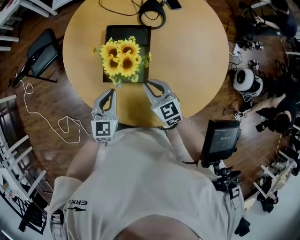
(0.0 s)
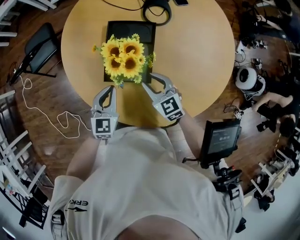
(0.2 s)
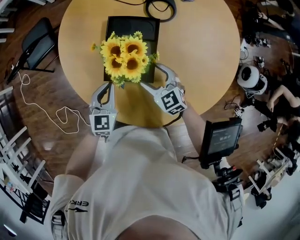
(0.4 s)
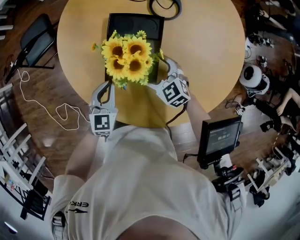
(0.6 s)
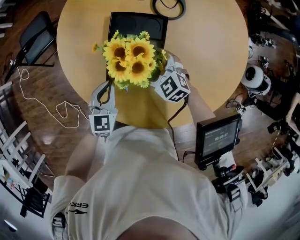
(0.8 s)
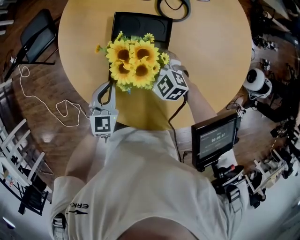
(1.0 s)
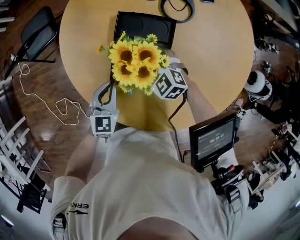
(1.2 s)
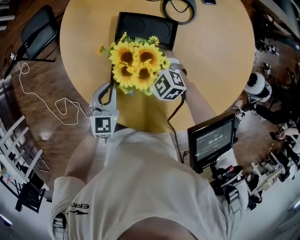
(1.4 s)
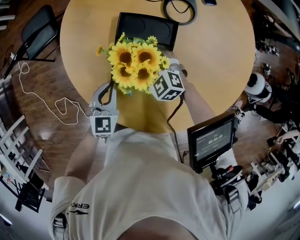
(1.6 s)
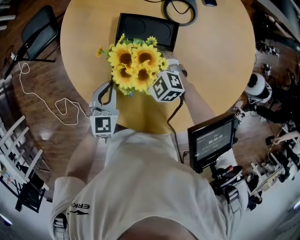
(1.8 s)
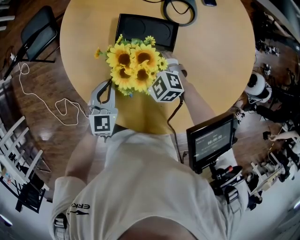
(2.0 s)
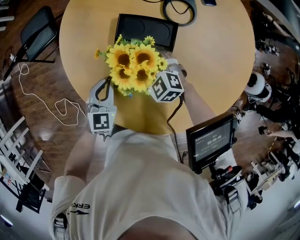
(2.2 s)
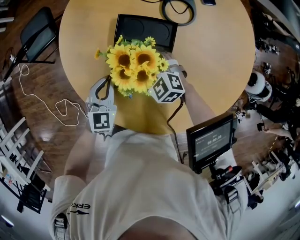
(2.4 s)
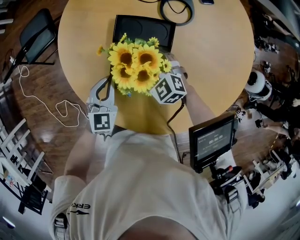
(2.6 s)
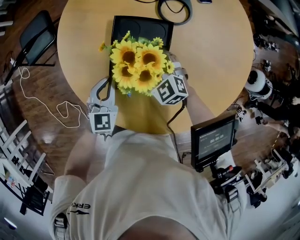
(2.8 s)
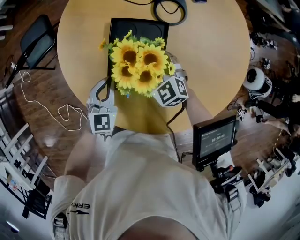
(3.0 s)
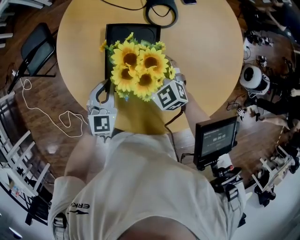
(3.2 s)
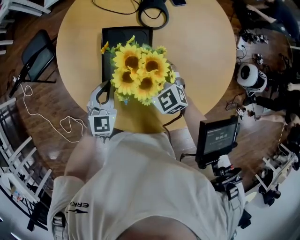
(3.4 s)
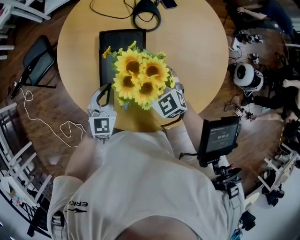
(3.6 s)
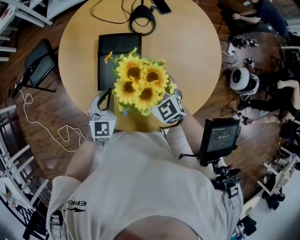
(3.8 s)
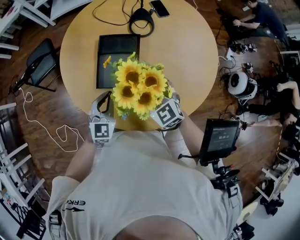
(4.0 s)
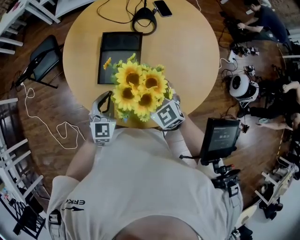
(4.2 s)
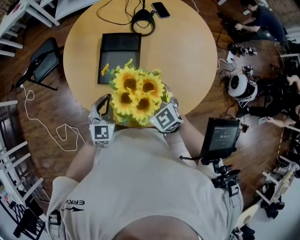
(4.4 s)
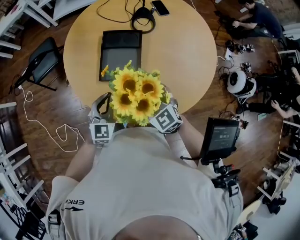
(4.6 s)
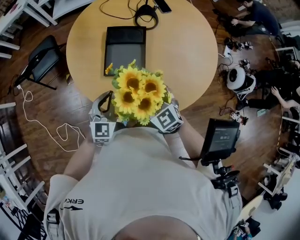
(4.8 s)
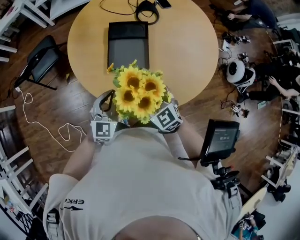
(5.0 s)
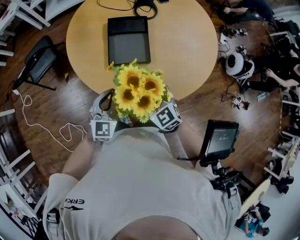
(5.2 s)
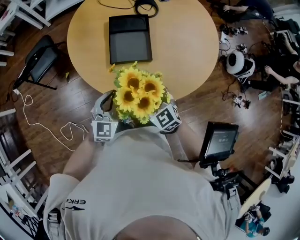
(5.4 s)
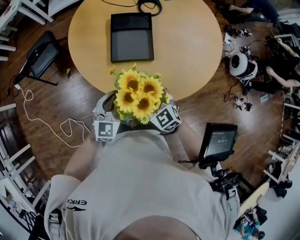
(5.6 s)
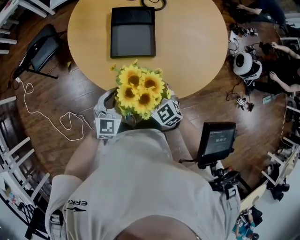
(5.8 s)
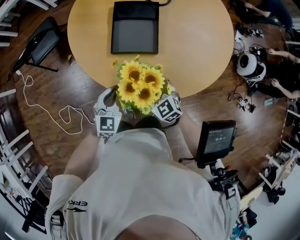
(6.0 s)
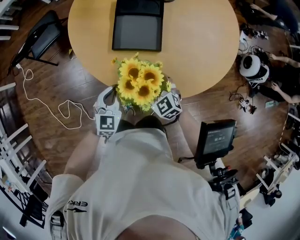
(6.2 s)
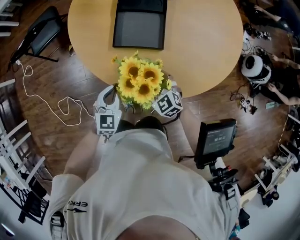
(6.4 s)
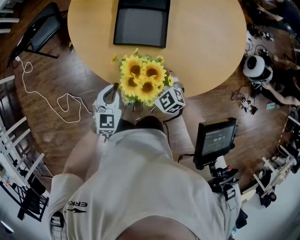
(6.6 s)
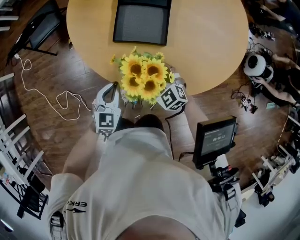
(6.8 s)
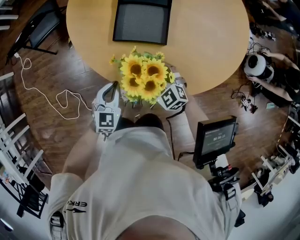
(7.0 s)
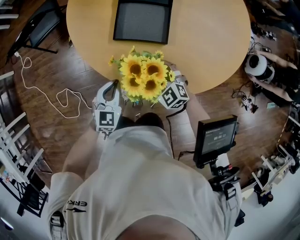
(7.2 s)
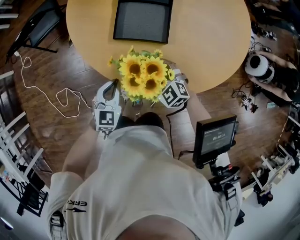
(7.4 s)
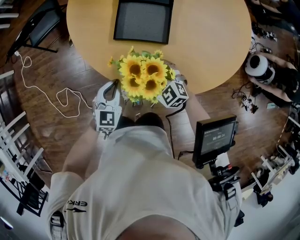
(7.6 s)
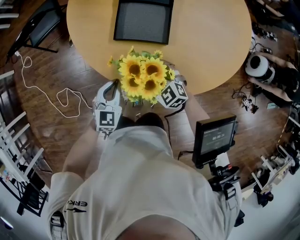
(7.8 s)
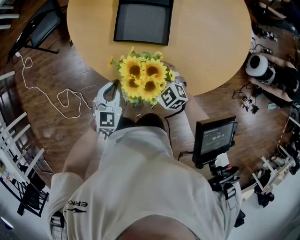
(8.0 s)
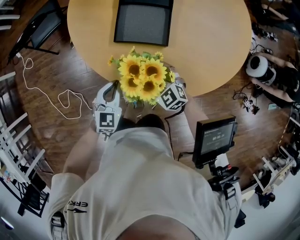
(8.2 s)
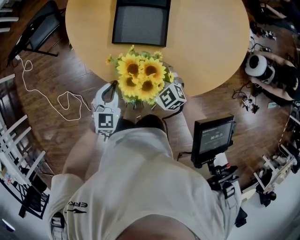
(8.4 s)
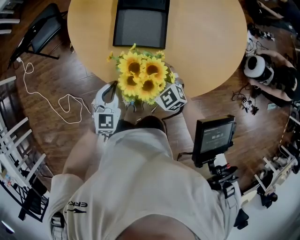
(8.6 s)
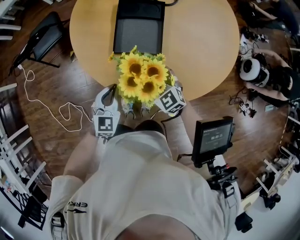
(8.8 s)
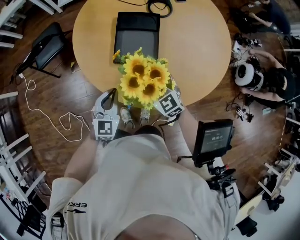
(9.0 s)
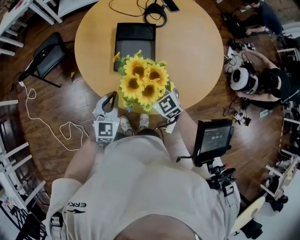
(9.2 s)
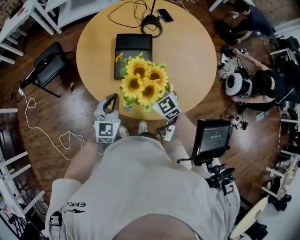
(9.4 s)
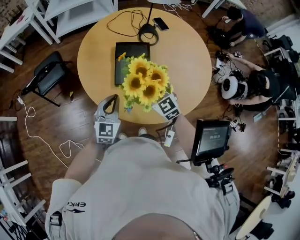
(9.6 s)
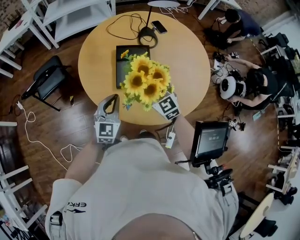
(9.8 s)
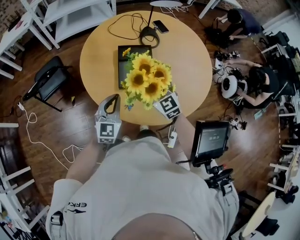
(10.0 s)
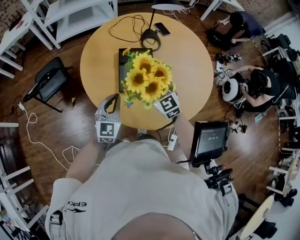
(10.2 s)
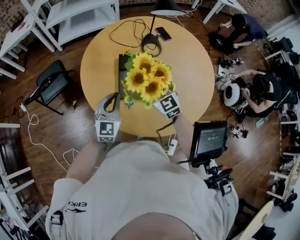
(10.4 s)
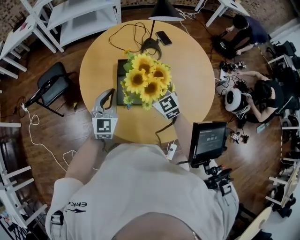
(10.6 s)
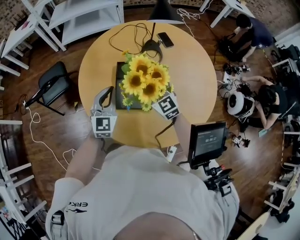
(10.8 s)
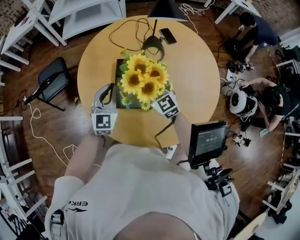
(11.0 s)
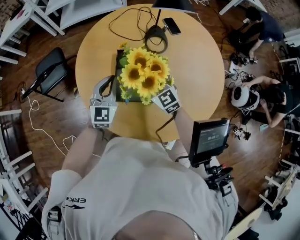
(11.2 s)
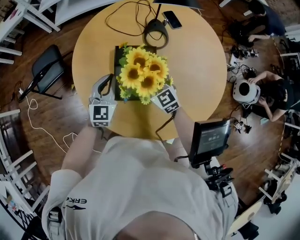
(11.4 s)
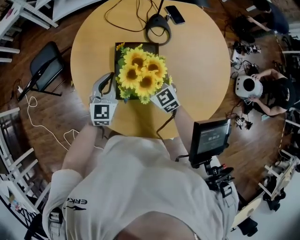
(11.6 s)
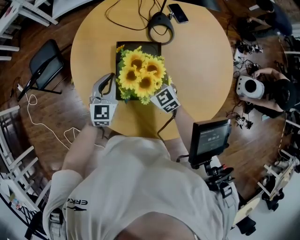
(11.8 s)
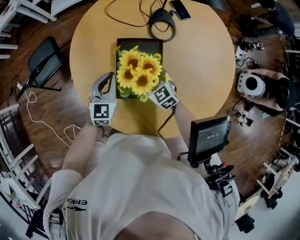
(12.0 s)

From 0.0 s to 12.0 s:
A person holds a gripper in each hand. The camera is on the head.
From 0.0 s to 1.6 s: The right gripper is displaced forward and downward by about 15 cm, changes its angle by roughly 40 degrees, and opens up; the left gripper shifts some 10 cm forward and downward.
From 1.6 s to 3.0 s: The grippers make only small movements.
From 3.0 s to 4.4 s: The two grippers go approximately 20 cm backward and upward.
From 4.4 s to 6.0 s: The right gripper moves downward, to the left and backward, approximately 15 cm; the left gripper shifts some 10 cm downward and backward.
From 6.0 s to 7.6 s: The two grippers go about 5 cm downward.
From 7.6 s to 9.0 s: Both grippers travel together upward, approximately 10 cm. The right gripper changes its angle by some 20 degrees.
From 9.0 s to 10.4 s: Both grippers travel together forward and upward, roughly 15 cm.
From 10.4 s to 12.0 s: The left gripper shifts some 15 cm forward and downward, while the right gripper goes about 20 cm downward, and changes its angle by some 20 degrees.

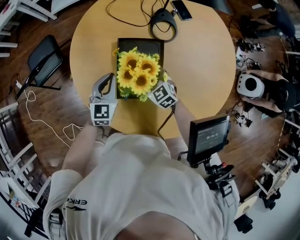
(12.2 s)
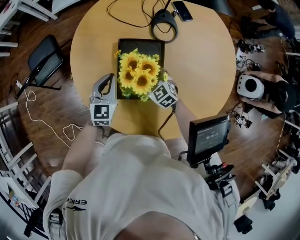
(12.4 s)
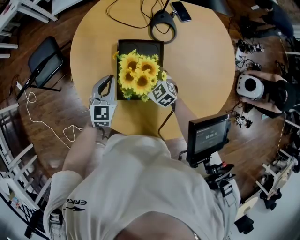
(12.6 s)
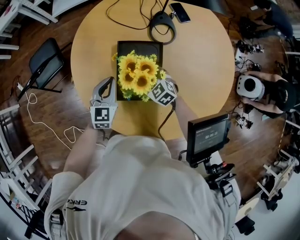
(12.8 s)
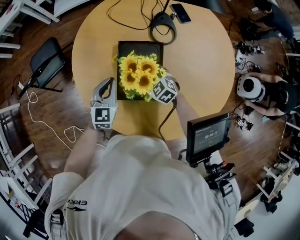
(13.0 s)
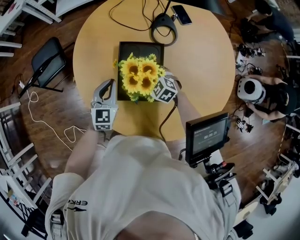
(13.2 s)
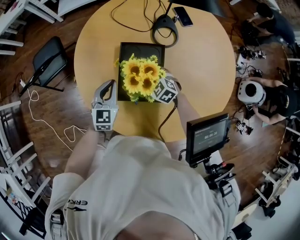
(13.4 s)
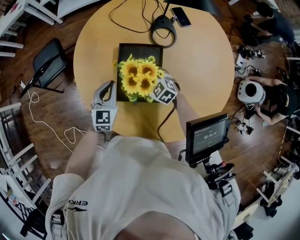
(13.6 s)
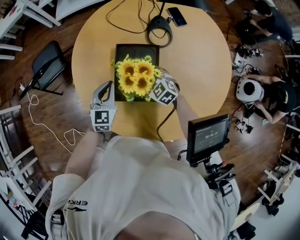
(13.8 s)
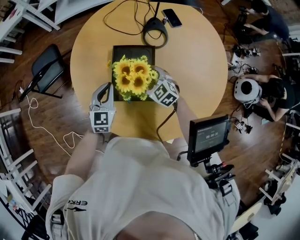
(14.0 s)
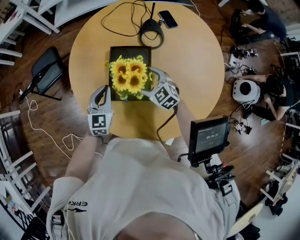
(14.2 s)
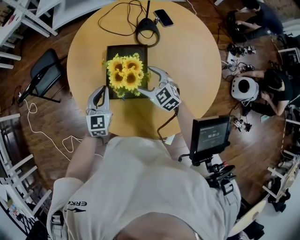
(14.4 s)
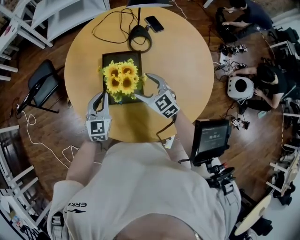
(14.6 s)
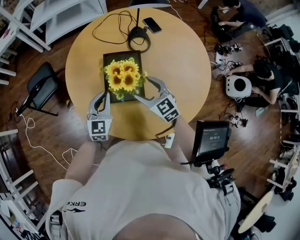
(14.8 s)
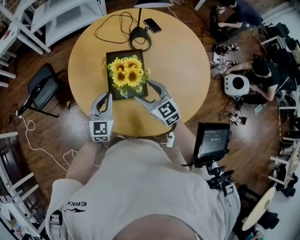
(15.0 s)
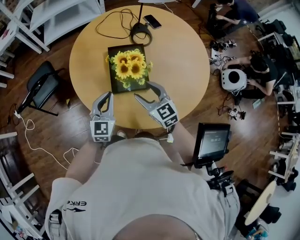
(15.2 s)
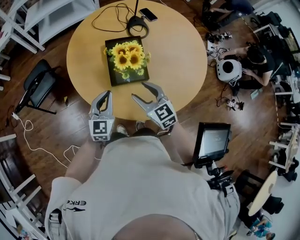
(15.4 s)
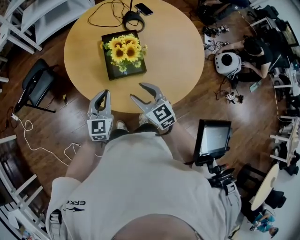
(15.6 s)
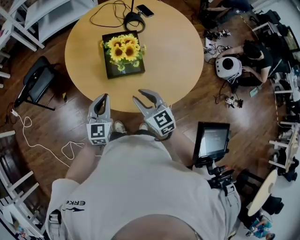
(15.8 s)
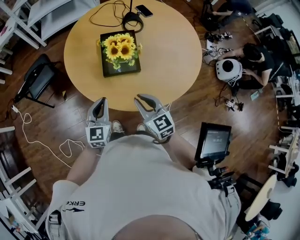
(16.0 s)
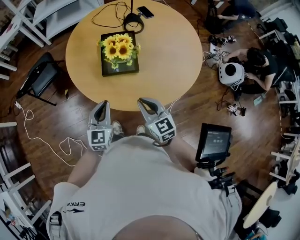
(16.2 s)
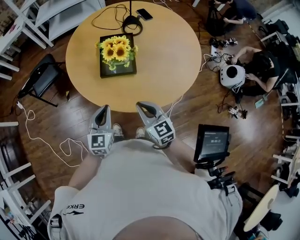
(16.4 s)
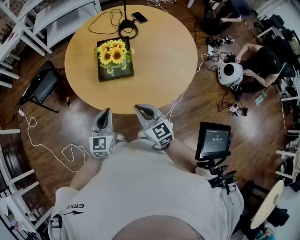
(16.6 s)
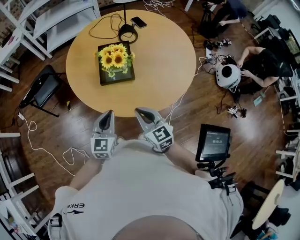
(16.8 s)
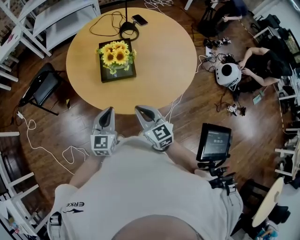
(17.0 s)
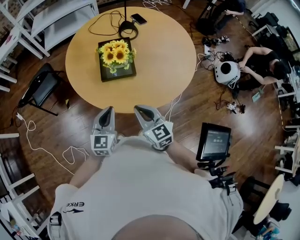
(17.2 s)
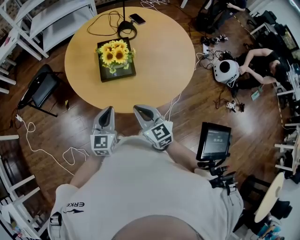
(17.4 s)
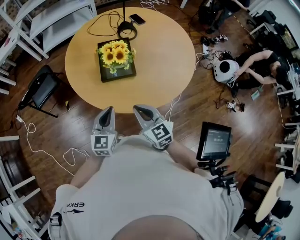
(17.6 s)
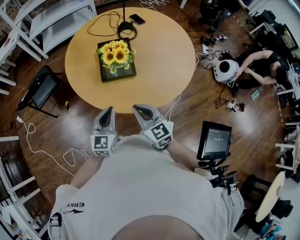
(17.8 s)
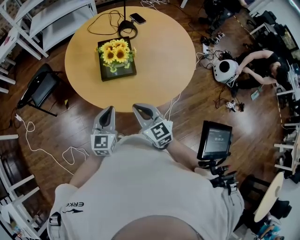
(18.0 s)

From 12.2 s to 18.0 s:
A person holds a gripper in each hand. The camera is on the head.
From 12.2 s to 13.6 s: The grippers move only a little.
From 13.6 s to 15.0 s: The right gripper moves upward and backward, roughly 20 cm, and turns by roughly 30 degrees, while the left gripper heads backward and upward, covering roughly 10 cm.
From 15.0 s to 16.6 s: The grippers both shift backward by roughly 20 cm. The right gripper closes its fingers.
From 16.6 s to 18.0 s: The grippers make only small movements.

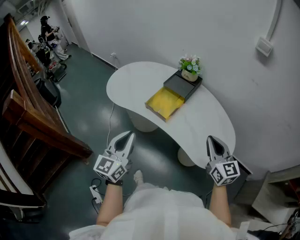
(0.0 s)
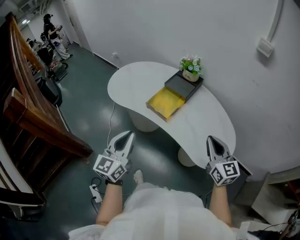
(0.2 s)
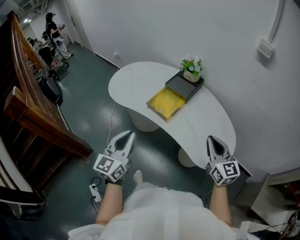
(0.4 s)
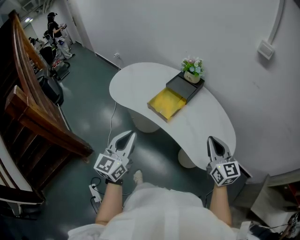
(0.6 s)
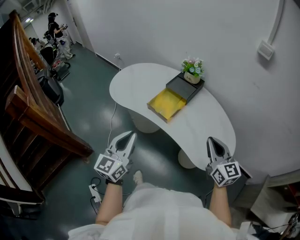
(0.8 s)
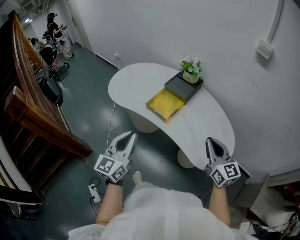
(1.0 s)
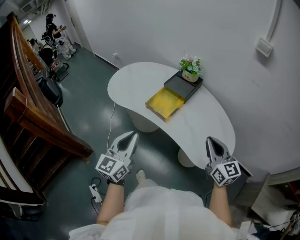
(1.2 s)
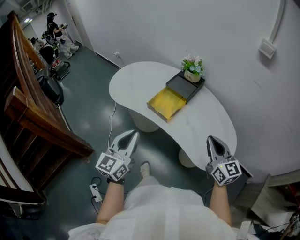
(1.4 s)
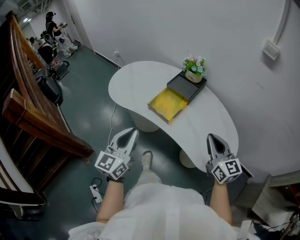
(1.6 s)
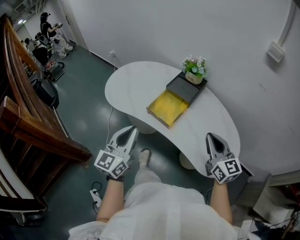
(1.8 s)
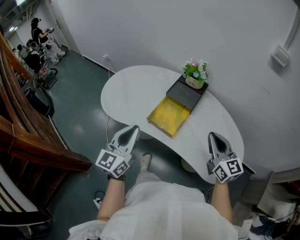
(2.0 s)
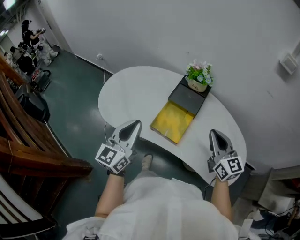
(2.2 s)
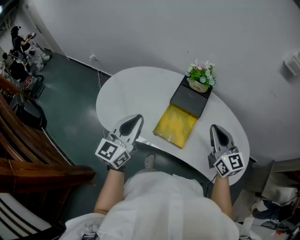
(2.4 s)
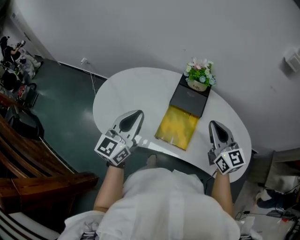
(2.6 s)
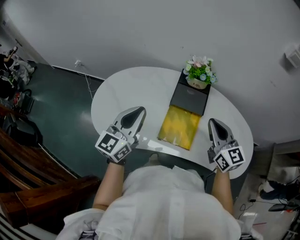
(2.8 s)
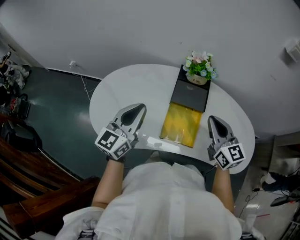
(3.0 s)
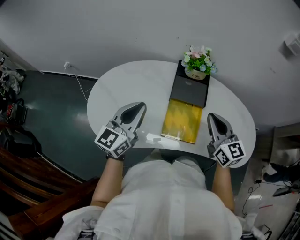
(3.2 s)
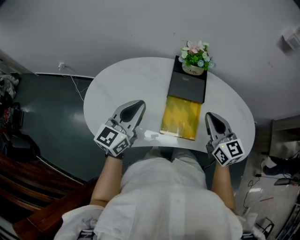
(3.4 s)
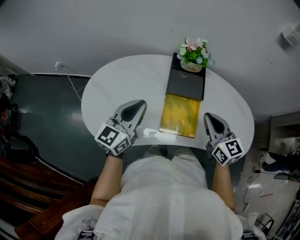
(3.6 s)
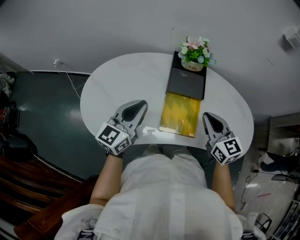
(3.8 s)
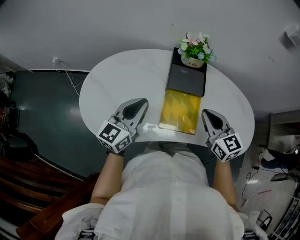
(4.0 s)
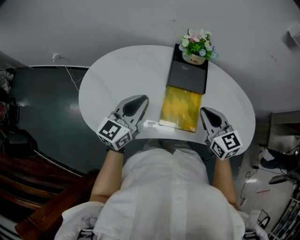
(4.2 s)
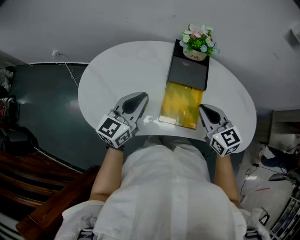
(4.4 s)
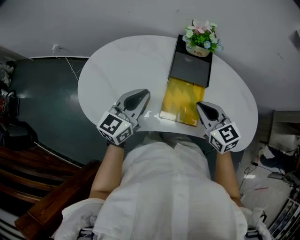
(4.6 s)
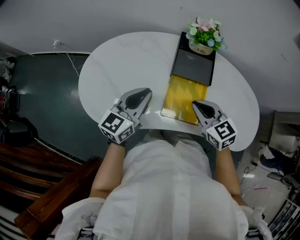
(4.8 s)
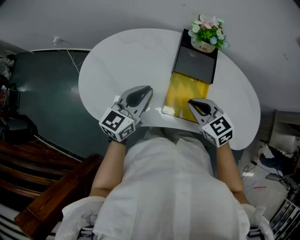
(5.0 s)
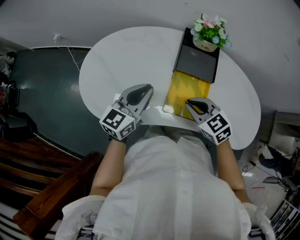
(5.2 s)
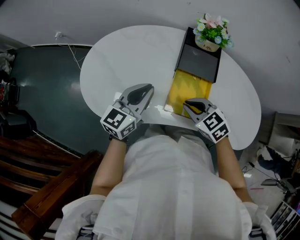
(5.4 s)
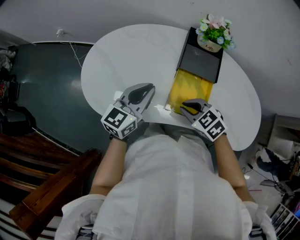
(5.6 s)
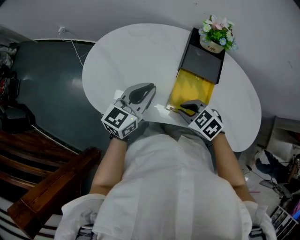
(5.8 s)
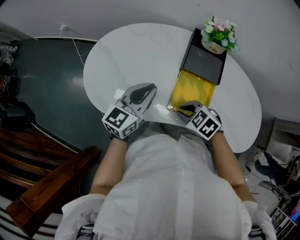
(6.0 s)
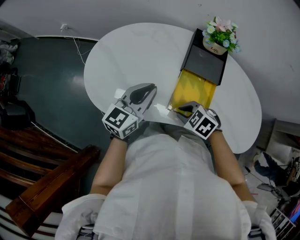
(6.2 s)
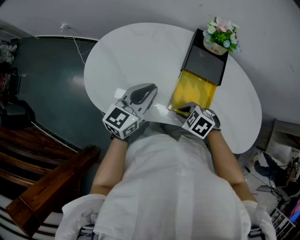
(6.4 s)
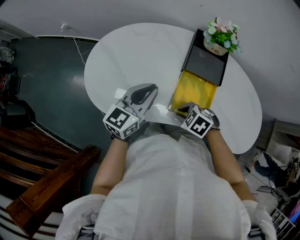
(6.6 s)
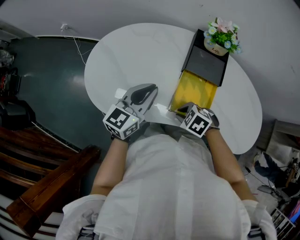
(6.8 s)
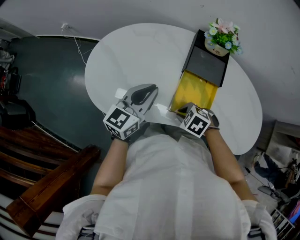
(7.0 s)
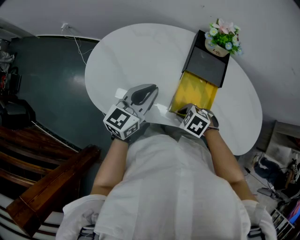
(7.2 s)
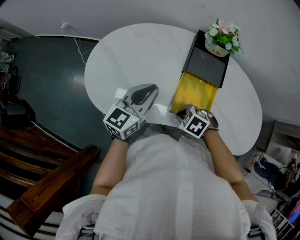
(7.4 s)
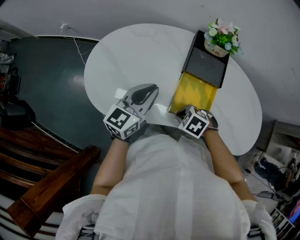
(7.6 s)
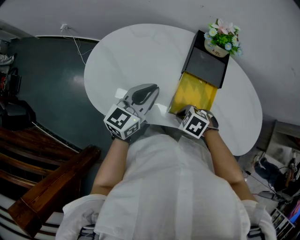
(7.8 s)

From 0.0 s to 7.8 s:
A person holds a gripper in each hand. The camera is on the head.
From 0.0 s to 1.6 s: The grippers move only a little.
From 1.6 s to 3.2 s: The left gripper ends up approximately 40 cm from where it was, and swivels about 30 degrees, while the right gripper moves about 30 cm, and changes its angle by roughly 20 degrees.
From 3.2 s to 4.6 s: Both grippers move downward, roughly 5 cm. The right gripper swivels some 20 degrees.
From 4.6 s to 6.2 s: The right gripper heads downward and to the left, covering roughly 15 cm, and tilts its fingers roughly 40 degrees downward.
From 6.2 s to 7.8 s: The grippers stay close to where they were, moving slightly.
